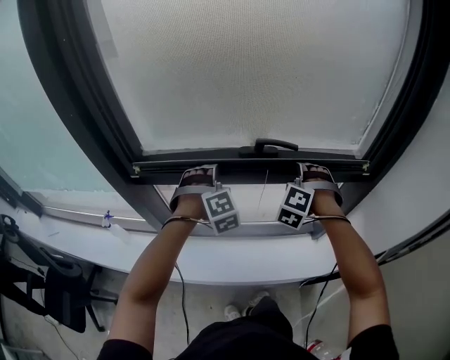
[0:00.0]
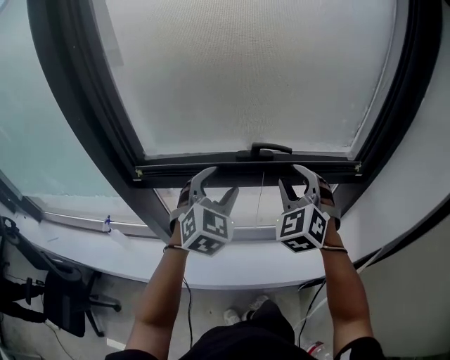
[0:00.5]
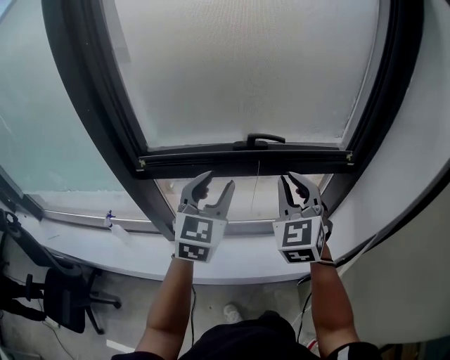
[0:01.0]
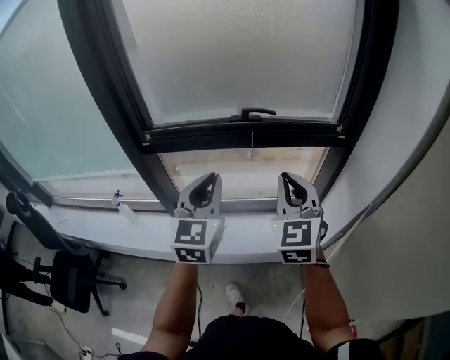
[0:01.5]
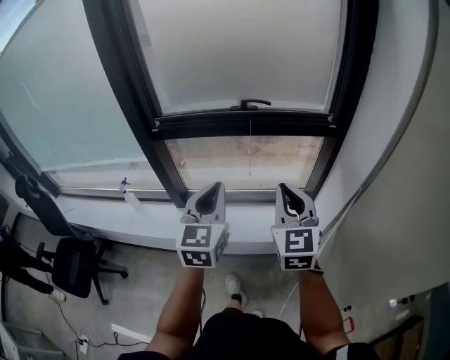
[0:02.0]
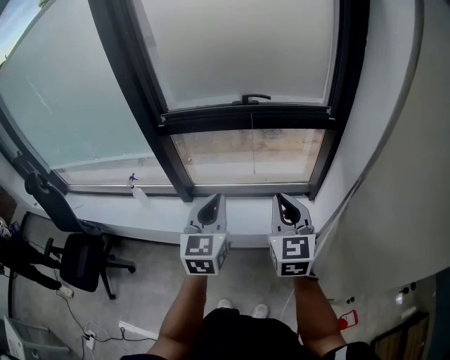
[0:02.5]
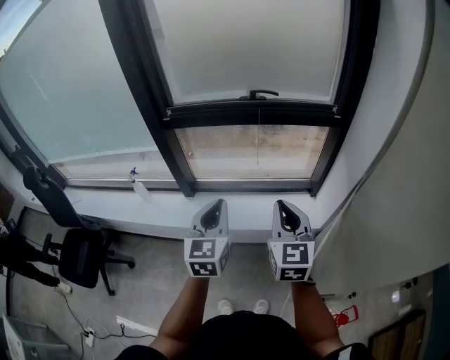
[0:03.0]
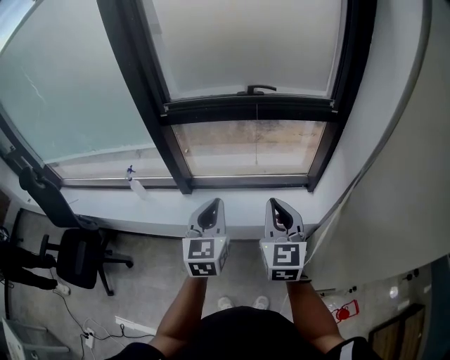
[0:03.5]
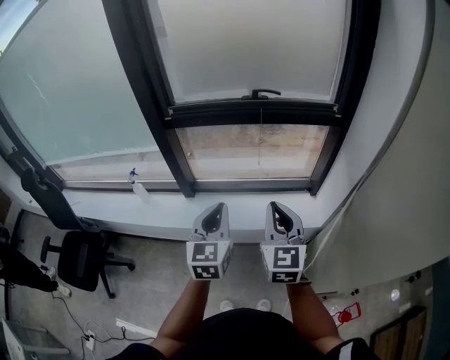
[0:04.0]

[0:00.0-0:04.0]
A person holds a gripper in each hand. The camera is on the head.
0:00.0 to 0:02.0: The two grippers go about 35 cm backward. The right gripper twists about 70 degrees clockwise, seen from behind, and closes its fingers; the left gripper rotates around the line of its fingers by about 70 degrees, counterclockwise from behind, and closes.
0:02.0 to 0:04.0: The right gripper shifts some 10 cm backward, to the left and downward, while the left gripper goes some 10 cm backward and downward.

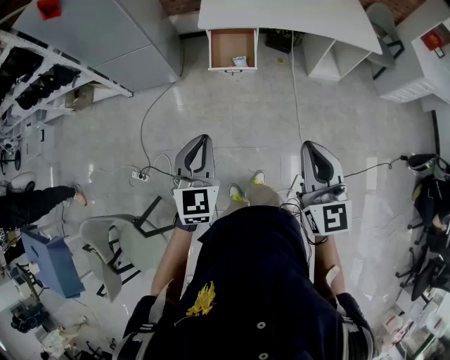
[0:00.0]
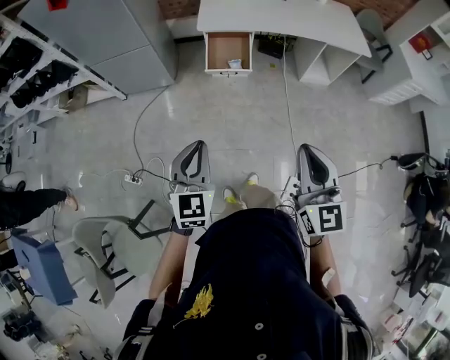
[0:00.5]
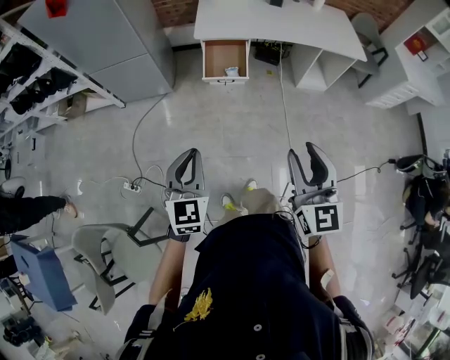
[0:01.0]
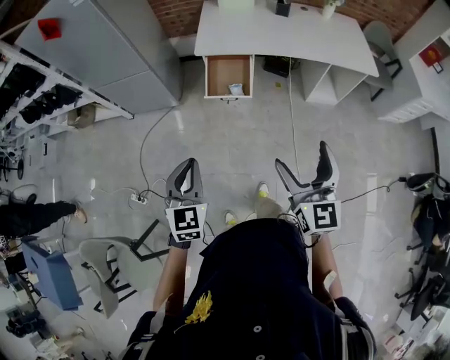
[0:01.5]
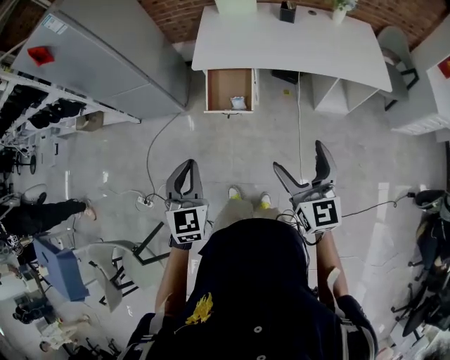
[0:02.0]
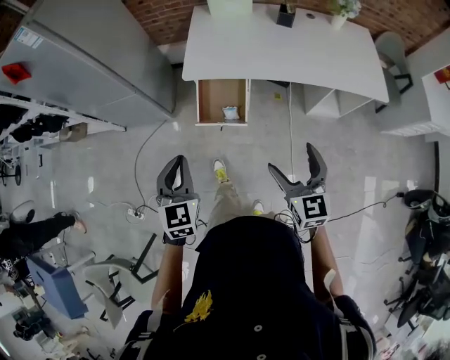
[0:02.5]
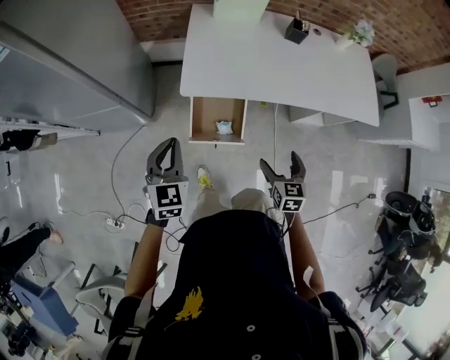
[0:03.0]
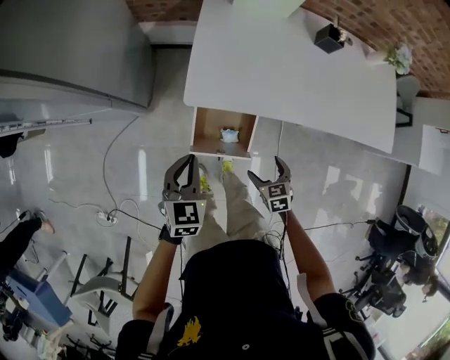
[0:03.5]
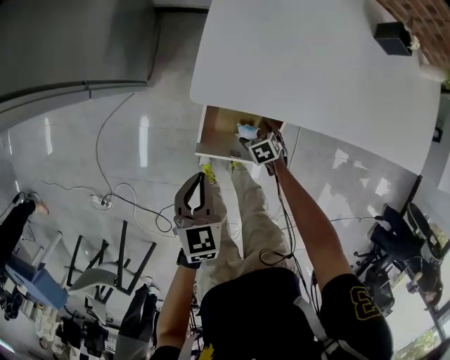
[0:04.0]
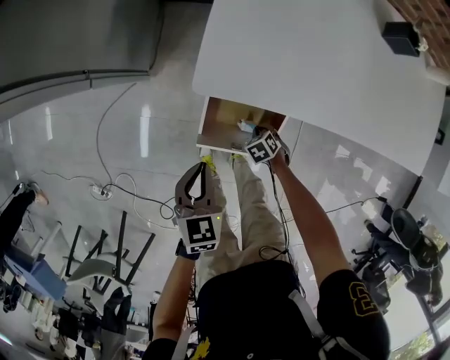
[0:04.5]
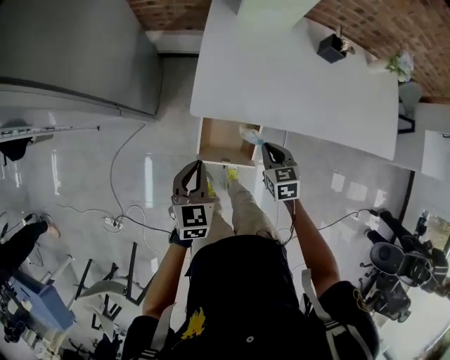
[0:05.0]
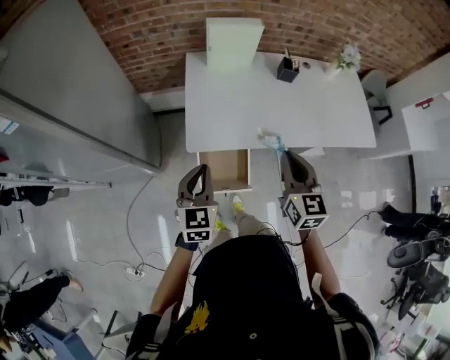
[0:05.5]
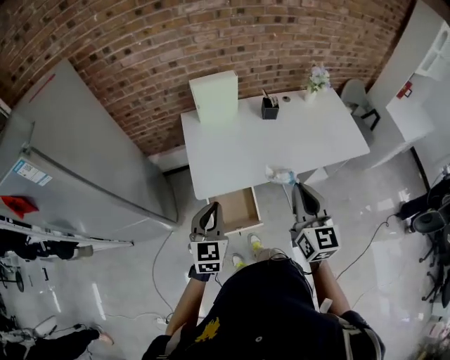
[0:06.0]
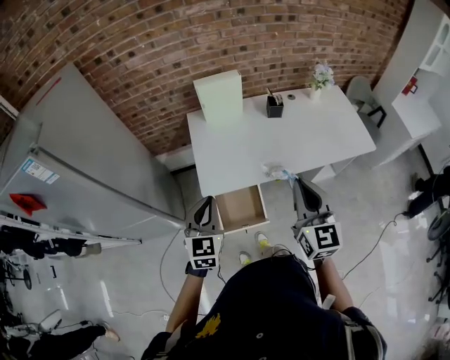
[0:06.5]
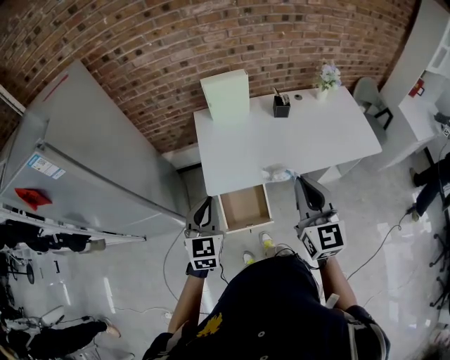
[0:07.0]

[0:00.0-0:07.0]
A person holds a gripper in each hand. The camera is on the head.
0:00.0 to 0:02.0: Both grippers move forward and to the right, roughly 25 cm. The right gripper opens up.
0:02.0 to 0:03.5: The right gripper shifts approximately 50 cm downward and forward, and angles its fingers downward, by roughly 50 degrees, while the left gripper goes some 50 cm forward and downward, and turns by approximately 20 degrees.
0:03.5 to 0:05.0: The left gripper travels downward and back again, approximately 15 cm each way, while the right gripper travels downward and back again, about 30 cm each way, and closes its fingers.
0:05.0 to 0:07.0: The left gripper shifts about 25 cm upward, and turns by roughly 20 degrees. The right gripper heads upward, covering about 40 cm, and tilts its fingers roughly 50 degrees upward.

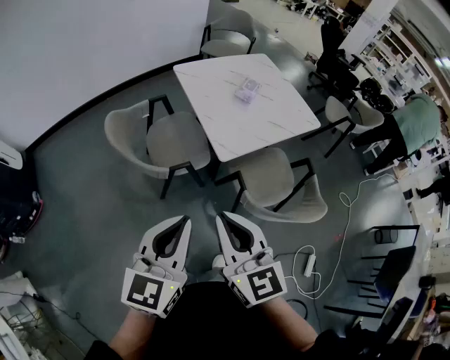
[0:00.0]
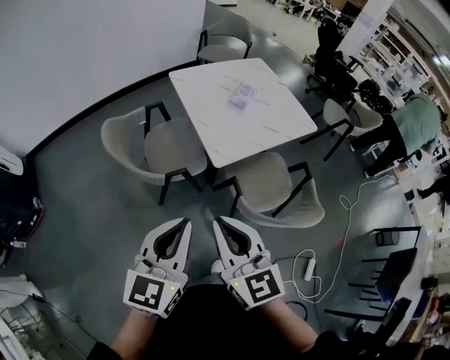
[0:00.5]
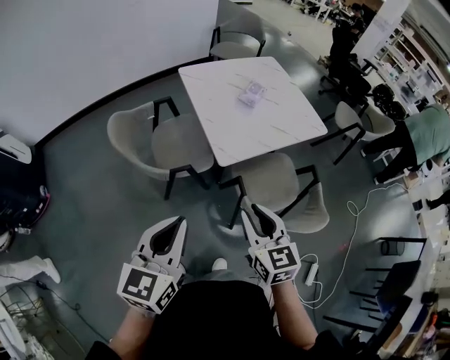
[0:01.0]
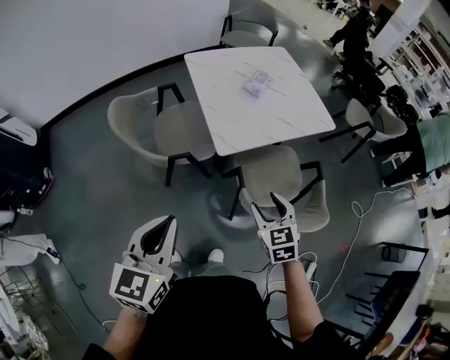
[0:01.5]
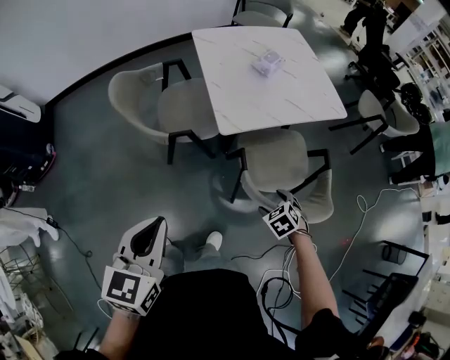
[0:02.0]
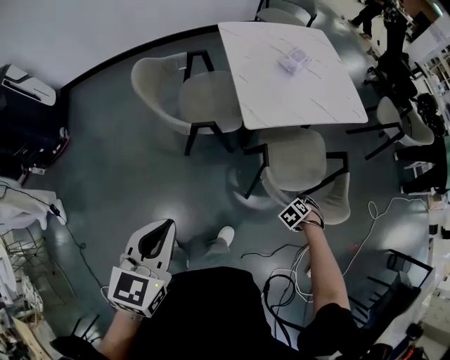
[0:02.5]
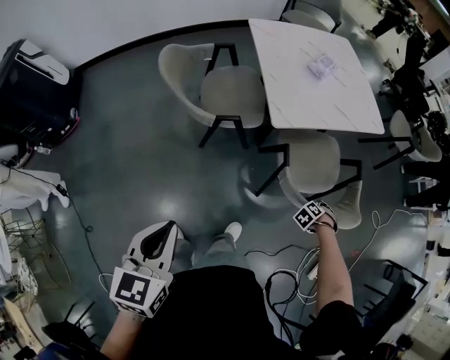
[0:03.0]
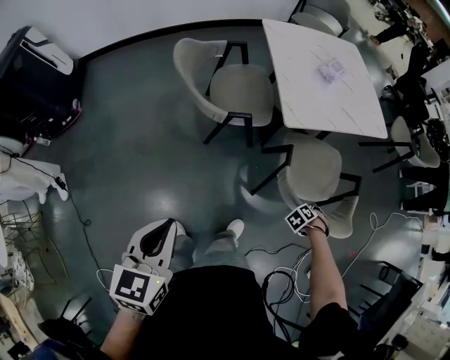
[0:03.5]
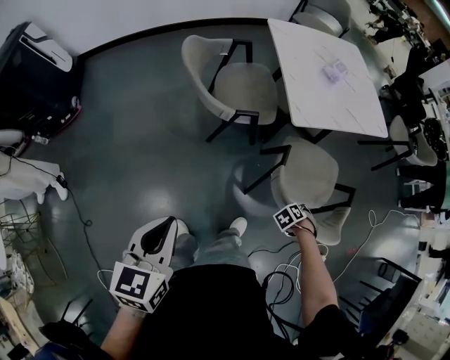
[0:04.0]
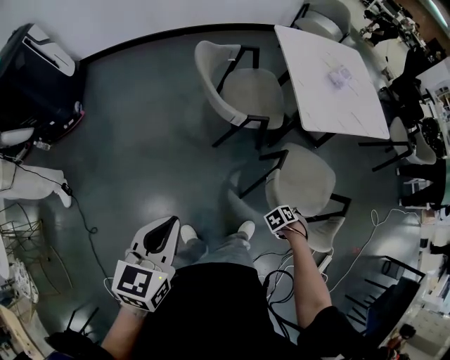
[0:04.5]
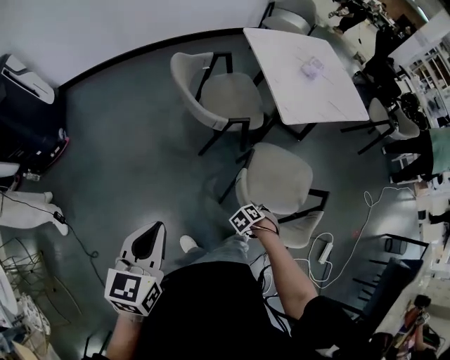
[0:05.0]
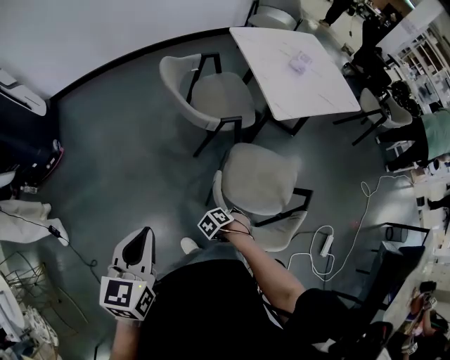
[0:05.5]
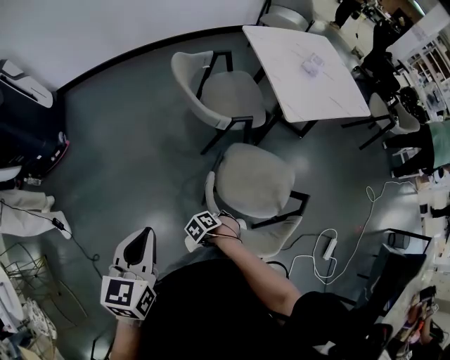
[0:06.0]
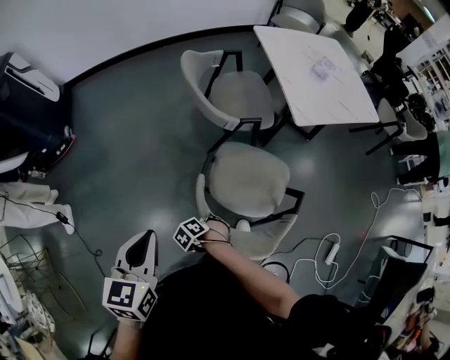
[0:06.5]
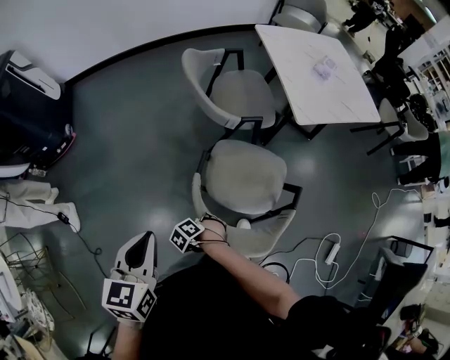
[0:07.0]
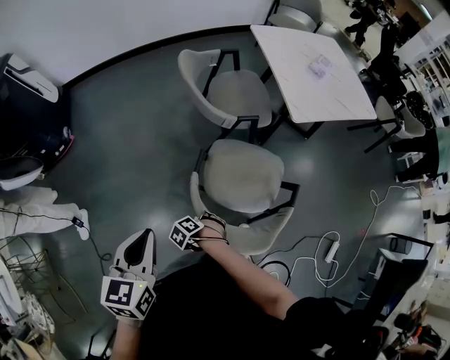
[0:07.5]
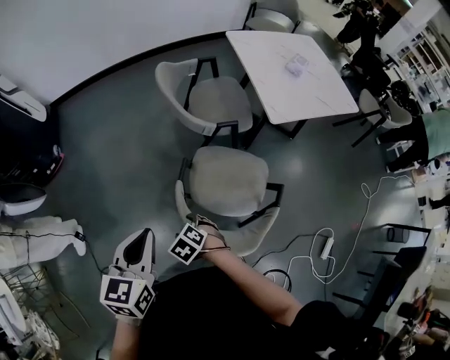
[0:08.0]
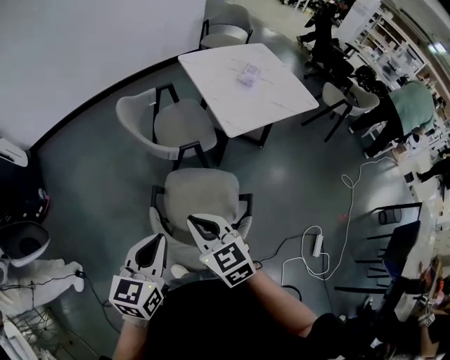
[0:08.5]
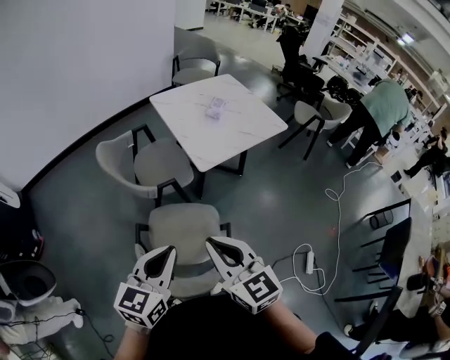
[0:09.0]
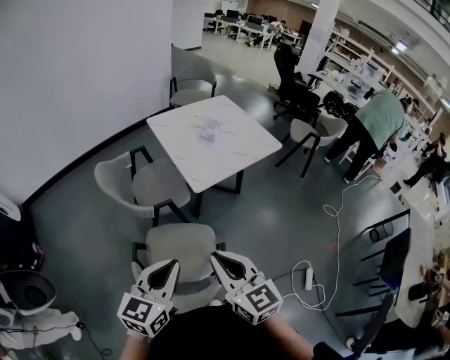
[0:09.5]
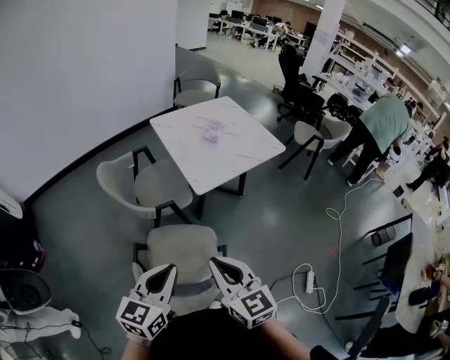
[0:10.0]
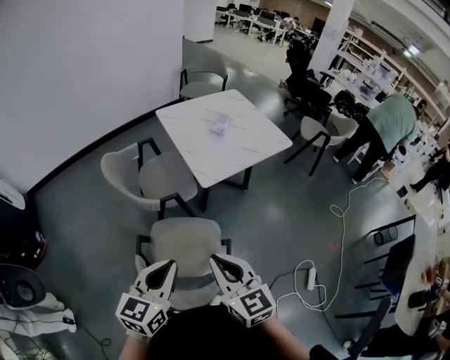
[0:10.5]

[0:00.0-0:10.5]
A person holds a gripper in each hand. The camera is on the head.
0:00.0 to 0:02.0: The left gripper goes roughly 10 cm downward and to the right, and changes its angle by roughly 20 degrees. The right gripper moves downward and to the right, about 40 cm, tips its fingers downward by roughly 60 degrees, and opens its fingers.
0:02.0 to 0:04.0: The right gripper changes place by about 15 cm, swivels roughly 30 degrees, and closes up. The left gripper shifts by some 25 cm.
0:04.0 to 0:06.5: The left gripper ends up about 15 cm from where it was, while the right gripper shifts by some 50 cm.
0:06.5 to 0:08.5: The left gripper changes place by some 20 cm, and turns by about 20 degrees. The right gripper shifts roughly 35 cm upward, points its fingers about 60 degrees further upward, and closes up.
0:08.5 to 0:10.5: The two grippers go roughly 15 cm to the right and upward. The right gripper rotates roughly 20 degrees.

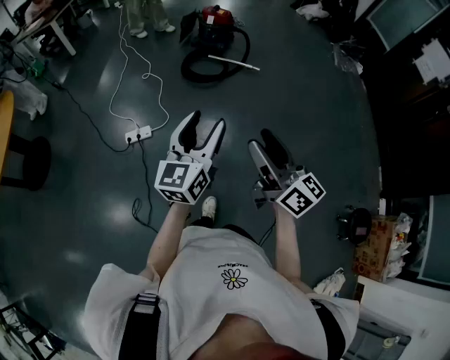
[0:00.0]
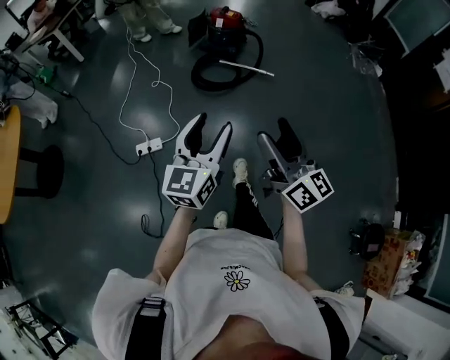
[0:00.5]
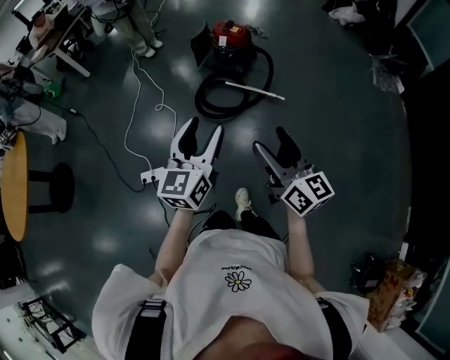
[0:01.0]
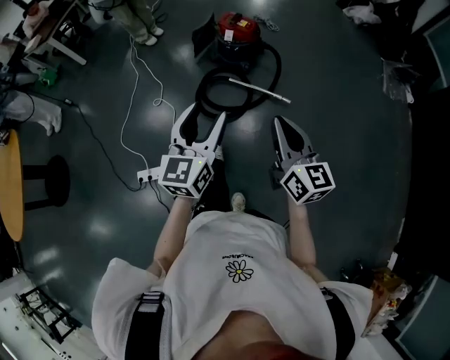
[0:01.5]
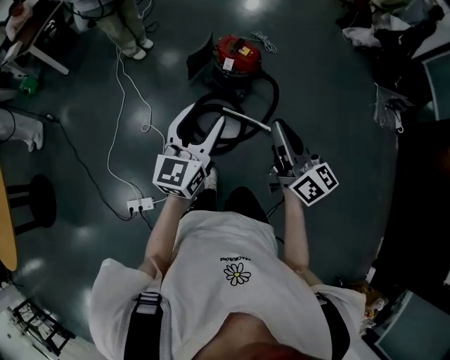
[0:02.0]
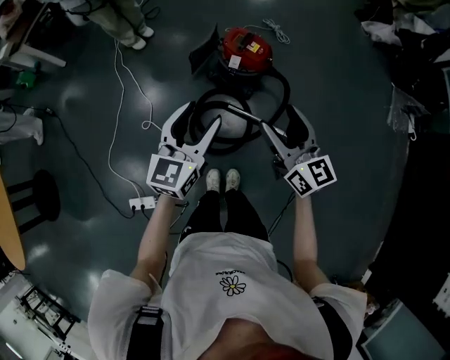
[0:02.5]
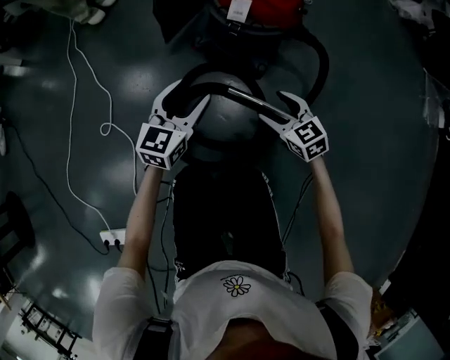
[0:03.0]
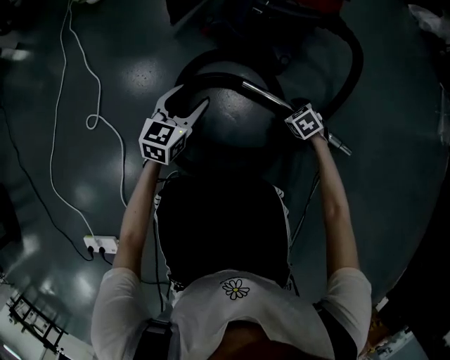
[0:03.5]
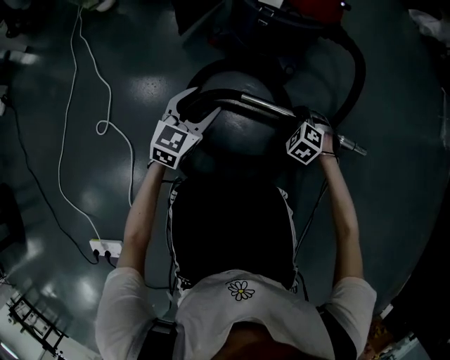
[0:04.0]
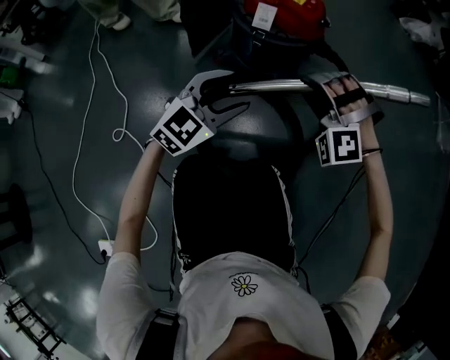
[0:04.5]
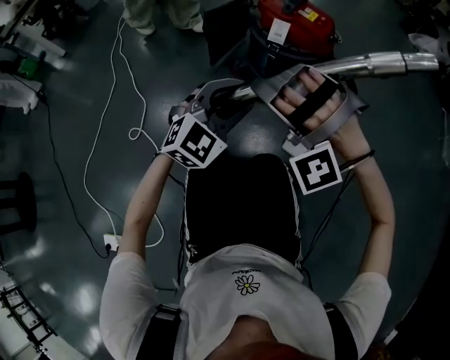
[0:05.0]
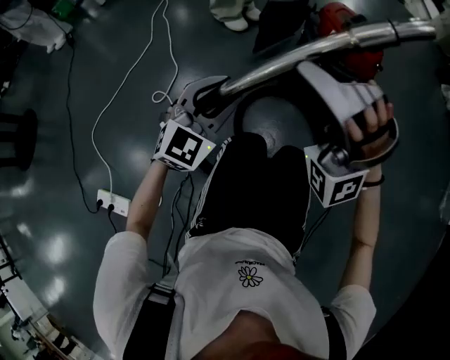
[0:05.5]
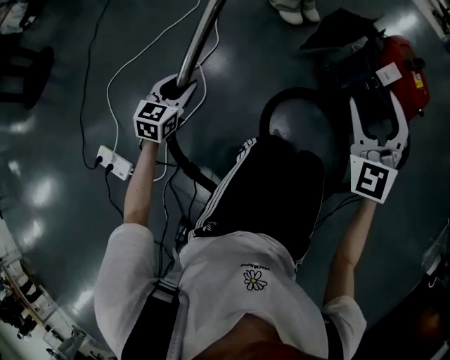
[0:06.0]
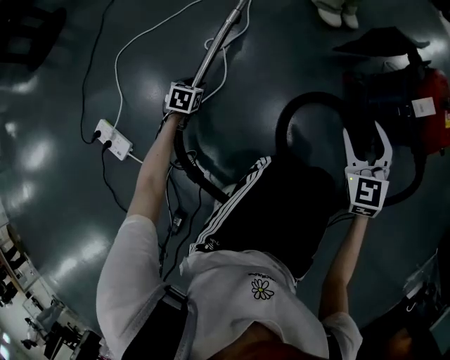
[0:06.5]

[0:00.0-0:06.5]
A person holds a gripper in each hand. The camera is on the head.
0:00.0 to 0:02.0: The two grippers travel together, forward, roughly 80 cm. The right gripper closes up.
0:02.0 to 0:04.5: The grippers both shift downward and forward by about 70 cm. The left gripper swivels roughly 40 degrees. Meanwhile the right gripper rotates around the line of its fingers by about 120 degrees, counterclockwise from behind, and opens up.
0:04.5 to 0:06.5: The right gripper goes upward and returns, approximately 20 cm each way, and rotates around the line of its fingers by about 50 degrees, clockwise from behind. The left gripper changes place by about 60 cm, and points its fingers approximately 40 degrees further downward.
